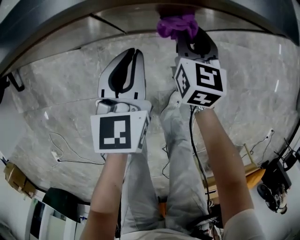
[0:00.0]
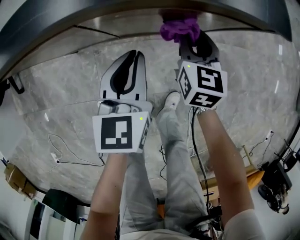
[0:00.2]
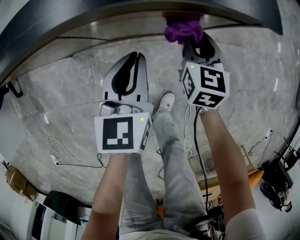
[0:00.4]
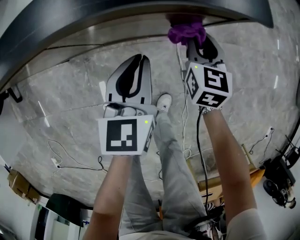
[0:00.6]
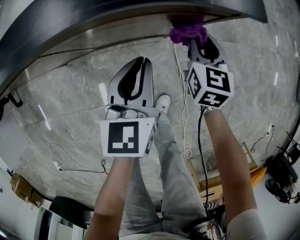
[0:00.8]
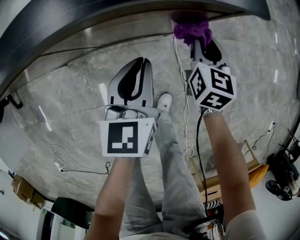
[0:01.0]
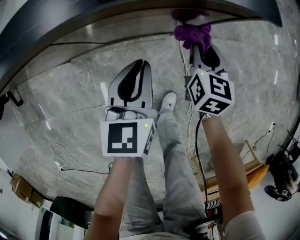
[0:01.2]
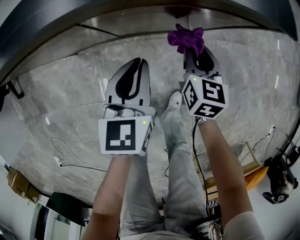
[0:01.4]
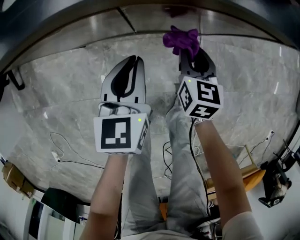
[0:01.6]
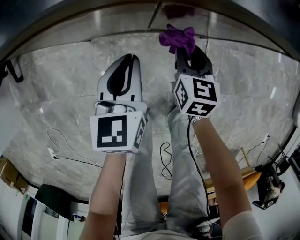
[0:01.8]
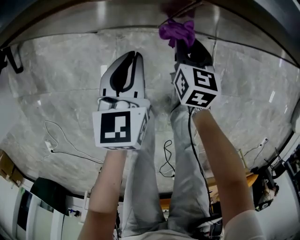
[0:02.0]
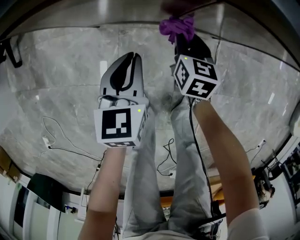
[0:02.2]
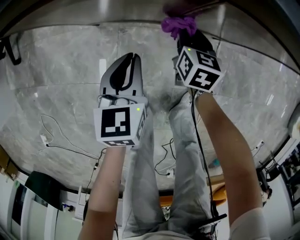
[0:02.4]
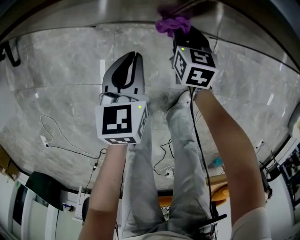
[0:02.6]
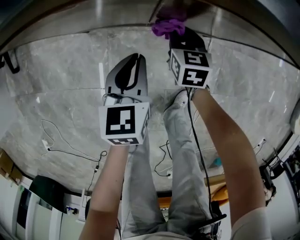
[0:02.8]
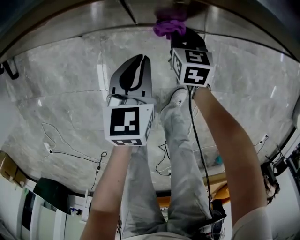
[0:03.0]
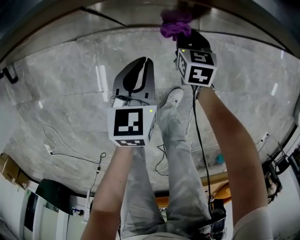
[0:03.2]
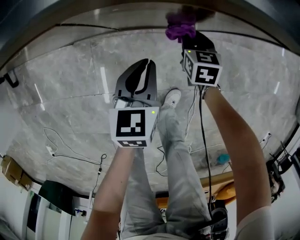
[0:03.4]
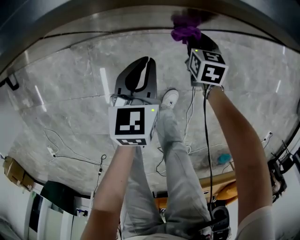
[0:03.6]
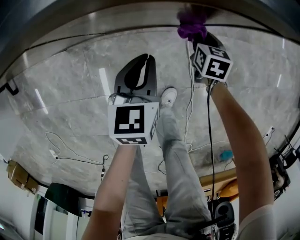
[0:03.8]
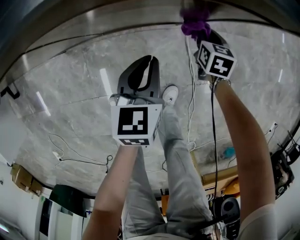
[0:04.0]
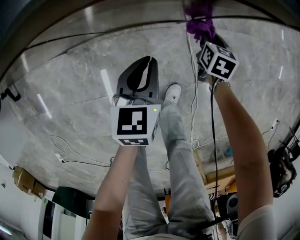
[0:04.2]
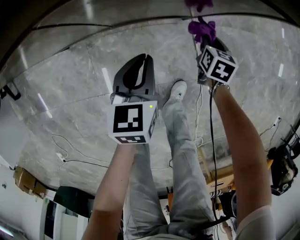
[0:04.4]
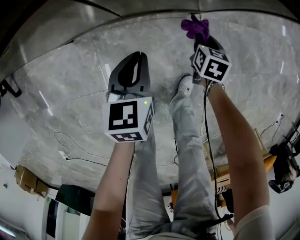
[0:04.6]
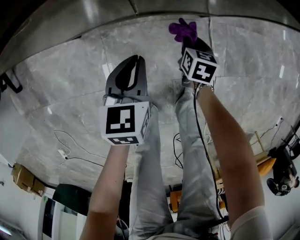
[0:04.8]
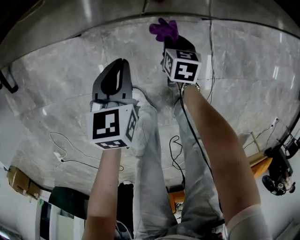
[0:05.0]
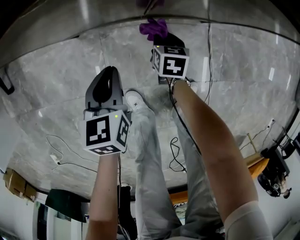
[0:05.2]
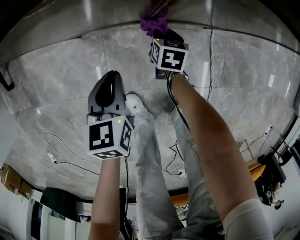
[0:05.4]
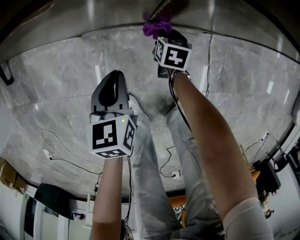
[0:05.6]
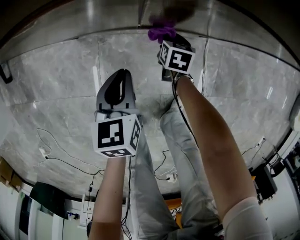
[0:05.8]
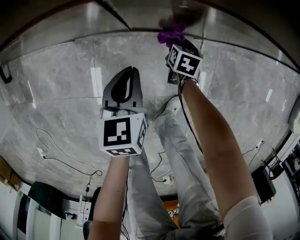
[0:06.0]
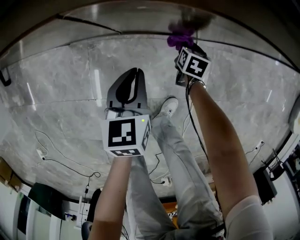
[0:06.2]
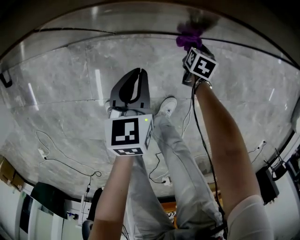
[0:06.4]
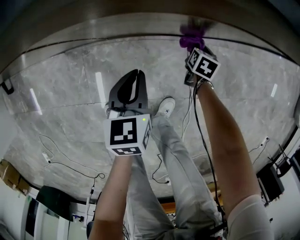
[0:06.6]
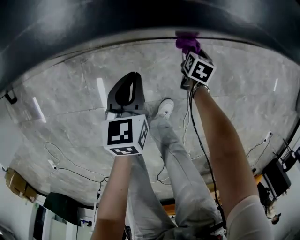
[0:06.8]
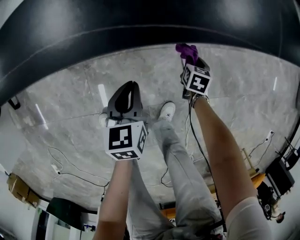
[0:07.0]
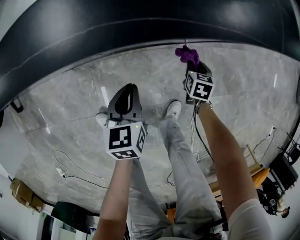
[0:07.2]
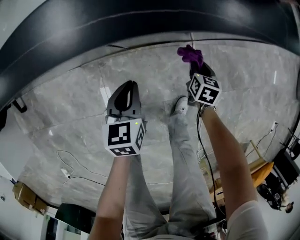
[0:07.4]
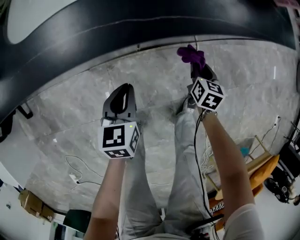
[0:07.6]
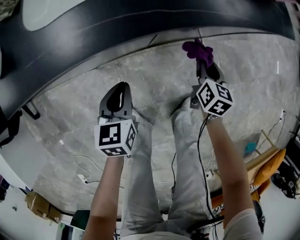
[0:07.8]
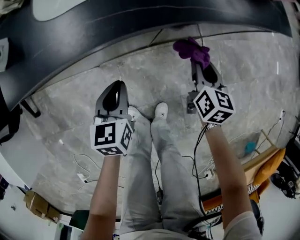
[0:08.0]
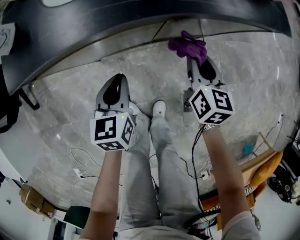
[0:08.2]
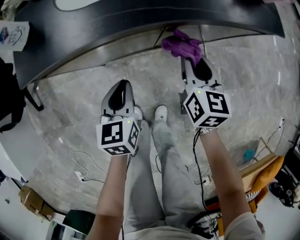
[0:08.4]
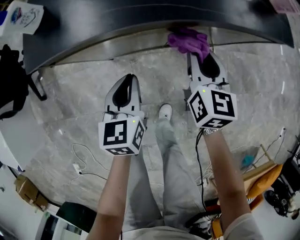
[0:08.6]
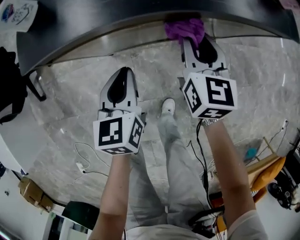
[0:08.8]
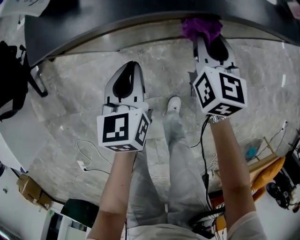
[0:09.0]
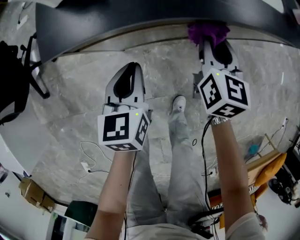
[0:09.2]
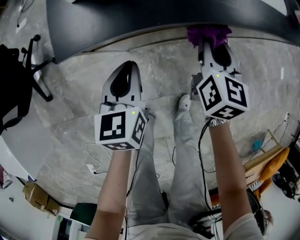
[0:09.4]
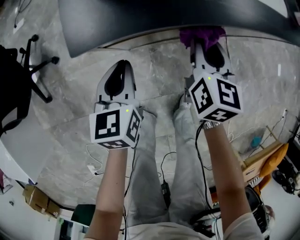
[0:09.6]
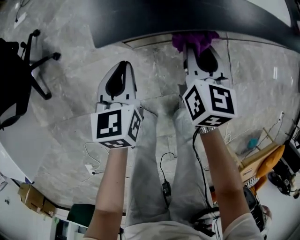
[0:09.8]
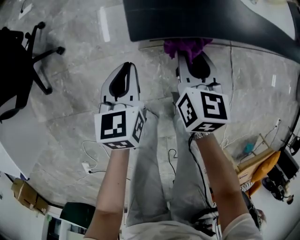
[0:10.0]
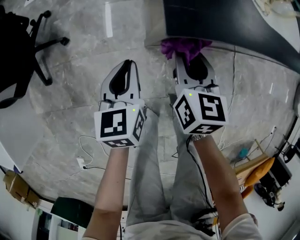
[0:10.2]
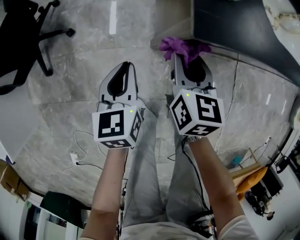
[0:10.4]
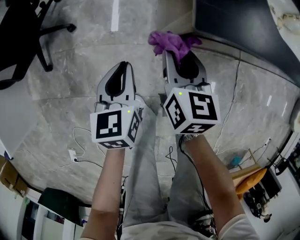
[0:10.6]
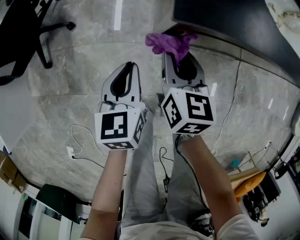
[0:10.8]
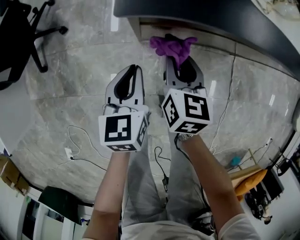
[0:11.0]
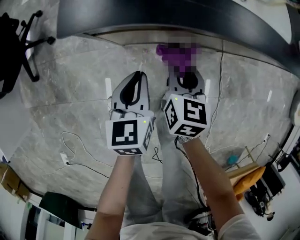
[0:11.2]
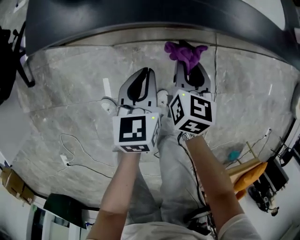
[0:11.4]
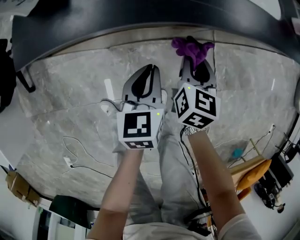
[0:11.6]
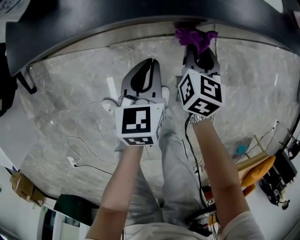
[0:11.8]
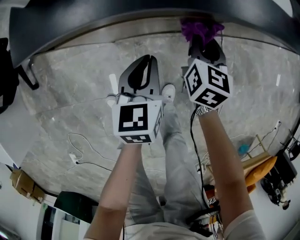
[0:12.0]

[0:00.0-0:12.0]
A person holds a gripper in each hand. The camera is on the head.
0:00.0 to 0:01.6: The right gripper travels backward by approximately 5 cm, and moves some 15 cm to the right and comes back, while the left gripper reaches some 15 cm to the right, then returns.
0:01.6 to 0:03.0: The right gripper travels downward and forward by some 10 cm, and reaches roughly 15 cm to the left, then returns. The left gripper shifts some 5 cm downward, and reaches about 10 cm to the left, then returns.
0:03.0 to 0:04.4: The left gripper travels to the right by about 10 cm. Meanwhile the right gripper heads to the right, covering approximately 20 cm, and swivels some 20 degrees.
0:04.4 to 0:06.0: The left gripper is displaced to the left by roughly 10 cm; the right gripper shifts approximately 20 cm to the left and downward.
0:06.0 to 0:07.6: The left gripper travels to the left and upward by about 10 cm. Meanwhile the right gripper moves upward and backward, approximately 15 cm, and goes to the right and returns, roughly 20 cm each way.
0:07.6 to 0:09.0: The right gripper moves to the left and upward, roughly 35 cm, and rotates some 30 degrees. Meanwhile the left gripper travels to the left and upward by approximately 20 cm.
0:09.0 to 0:10.4: The grippers both shift to the left by roughly 30 cm.
0:10.4 to 0:12.0: The grippers both shift to the right by roughly 35 cm.

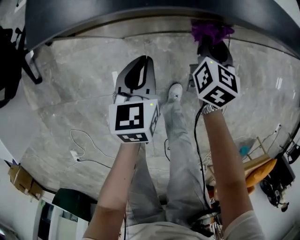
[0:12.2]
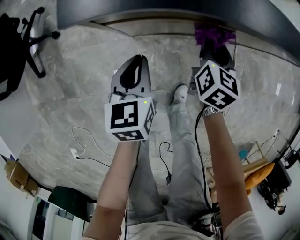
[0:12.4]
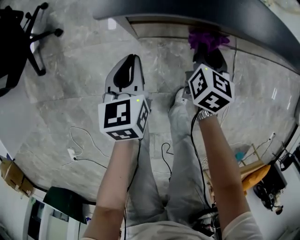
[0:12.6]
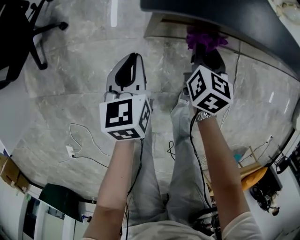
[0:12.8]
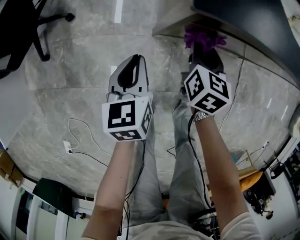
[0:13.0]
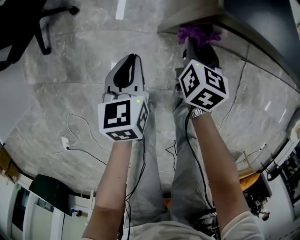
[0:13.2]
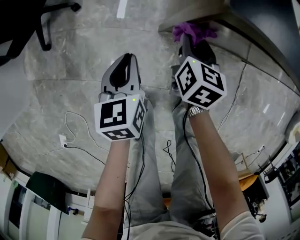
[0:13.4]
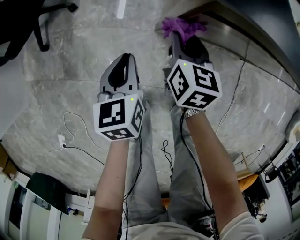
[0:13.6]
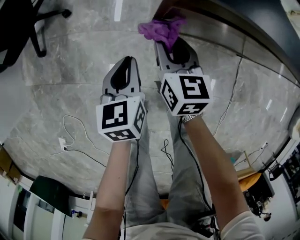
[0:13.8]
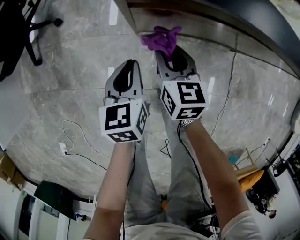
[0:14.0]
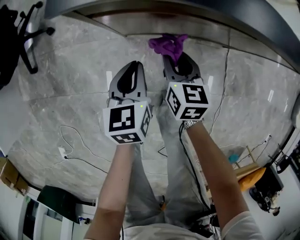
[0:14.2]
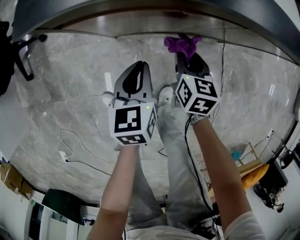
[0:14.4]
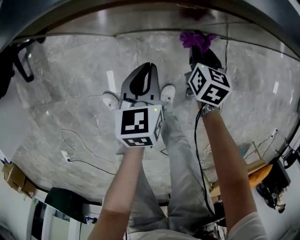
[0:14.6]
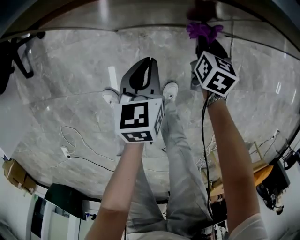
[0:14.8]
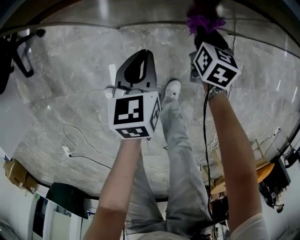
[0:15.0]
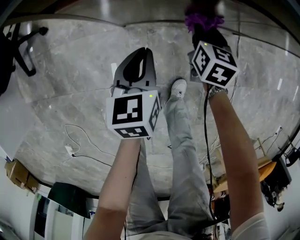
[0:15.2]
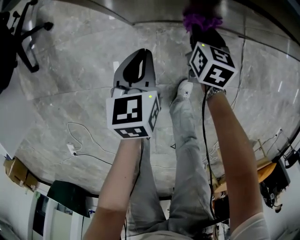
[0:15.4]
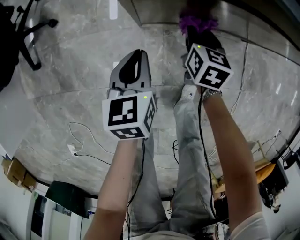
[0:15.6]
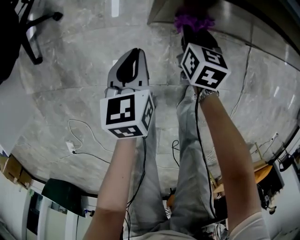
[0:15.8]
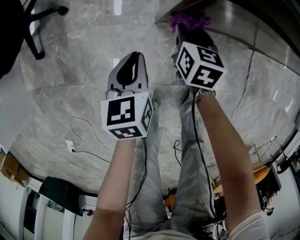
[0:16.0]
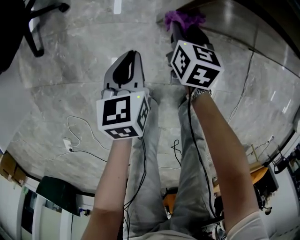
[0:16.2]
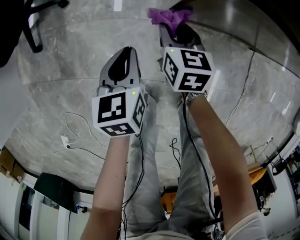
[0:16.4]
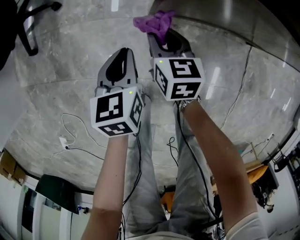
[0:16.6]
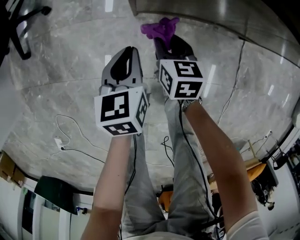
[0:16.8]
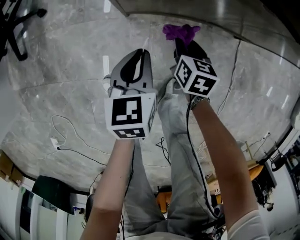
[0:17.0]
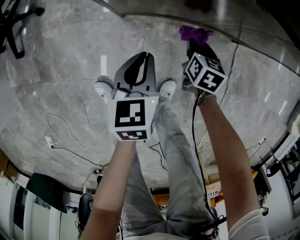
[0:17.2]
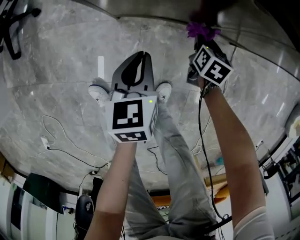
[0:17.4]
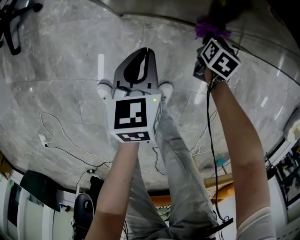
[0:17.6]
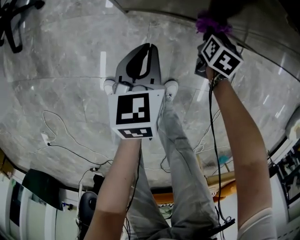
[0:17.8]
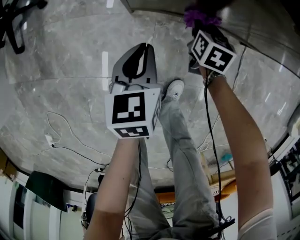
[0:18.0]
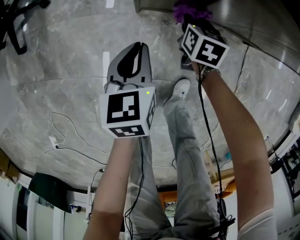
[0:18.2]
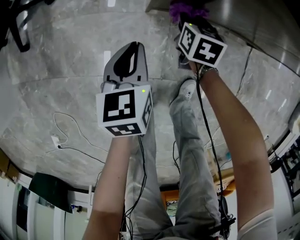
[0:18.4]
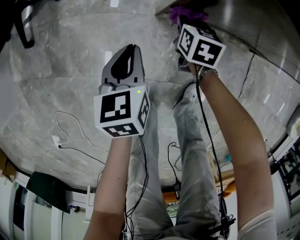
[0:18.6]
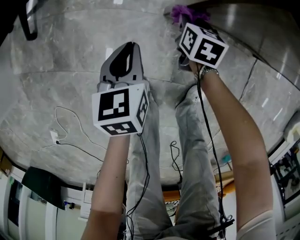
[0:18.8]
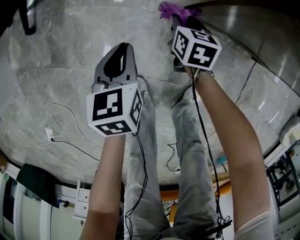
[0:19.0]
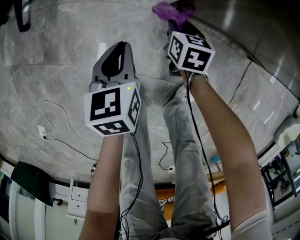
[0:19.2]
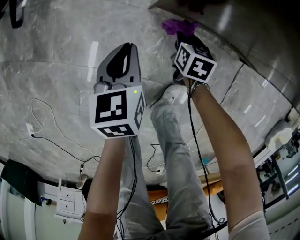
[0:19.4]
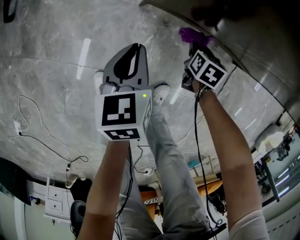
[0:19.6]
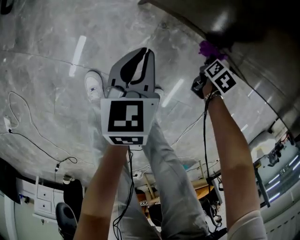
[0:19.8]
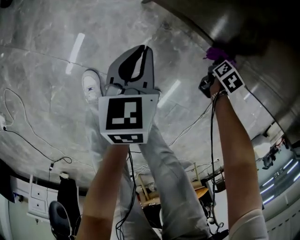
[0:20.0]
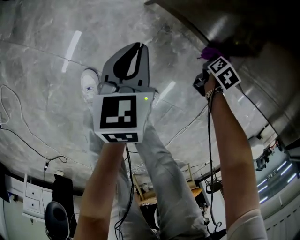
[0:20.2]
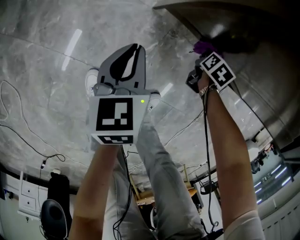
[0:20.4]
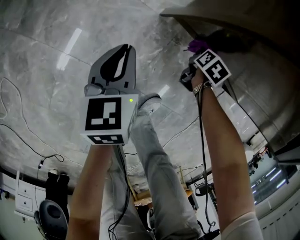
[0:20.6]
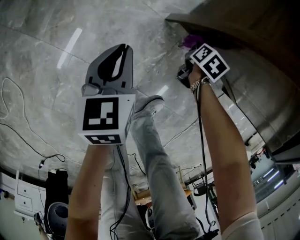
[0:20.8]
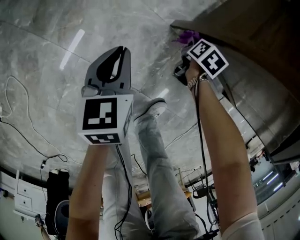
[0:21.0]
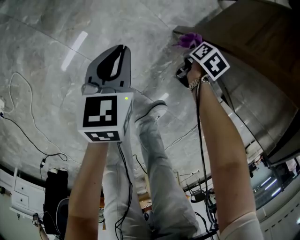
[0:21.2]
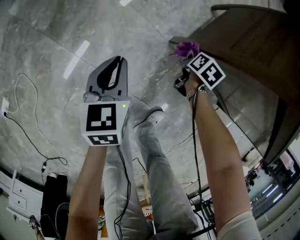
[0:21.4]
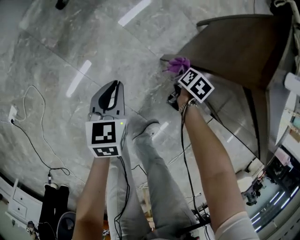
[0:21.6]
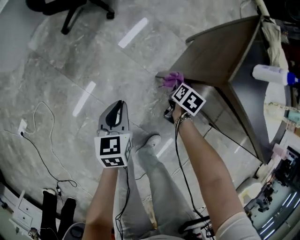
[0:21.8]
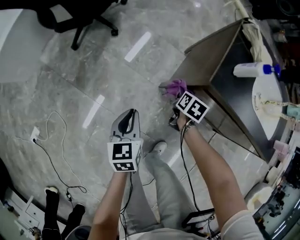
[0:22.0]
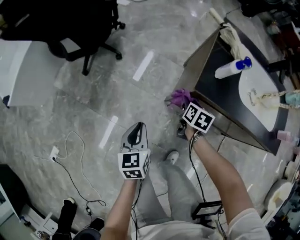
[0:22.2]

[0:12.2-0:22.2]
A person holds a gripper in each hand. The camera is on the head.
0:12.2 to 0:13.6: The grippers both shift to the left by some 30 cm. The right gripper changes its angle by some 20 degrees.
0:13.6 to 0:15.0: Both grippers move to the right, approximately 30 cm.
0:15.0 to 0:16.4: Both grippers travel together to the left, some 30 cm. The right gripper rotates some 20 degrees.
0:16.4 to 0:18.0: The right gripper is displaced to the right and downward by approximately 25 cm. The left gripper travels to the right by some 15 cm.
0:18.0 to 0:19.4: The right gripper is displaced to the left and downward by approximately 15 cm, while the left gripper is displaced to the left by about 10 cm.
0:19.4 to 0:20.8: The left gripper shifts approximately 10 cm to the left and downward. The right gripper travels downward and forward by about 10 cm, and moves roughly 25 cm to the right and comes back.
0:20.8 to 0:22.2: The grippers both shift upward by roughly 40 cm. The right gripper rotates approximately 20 degrees.

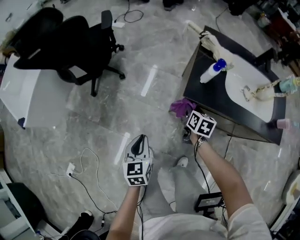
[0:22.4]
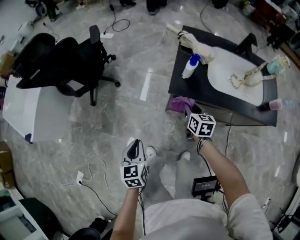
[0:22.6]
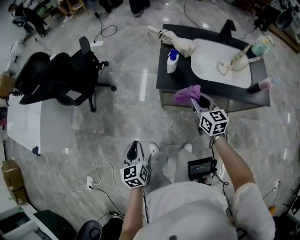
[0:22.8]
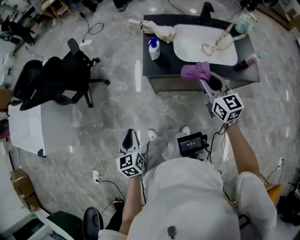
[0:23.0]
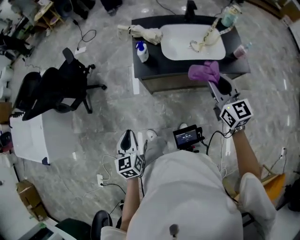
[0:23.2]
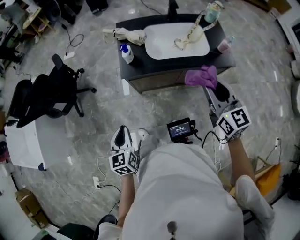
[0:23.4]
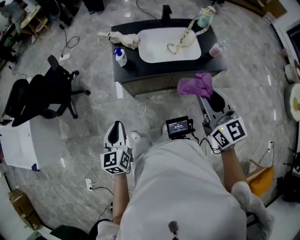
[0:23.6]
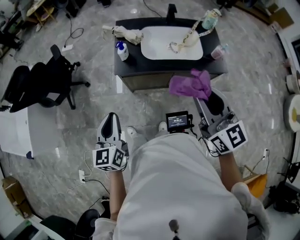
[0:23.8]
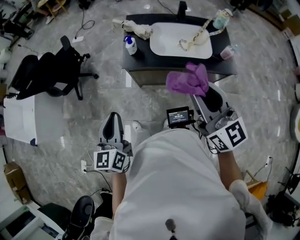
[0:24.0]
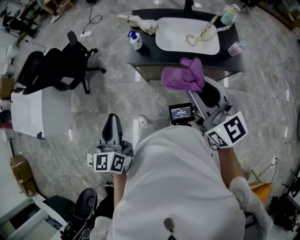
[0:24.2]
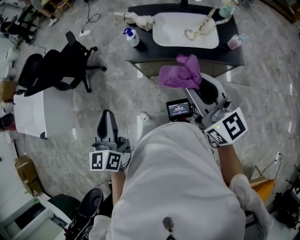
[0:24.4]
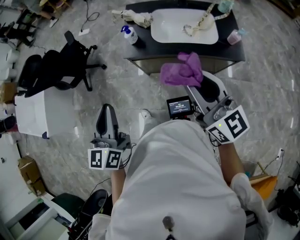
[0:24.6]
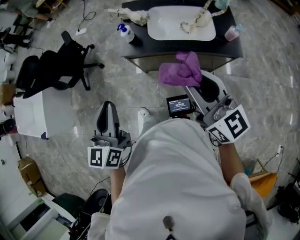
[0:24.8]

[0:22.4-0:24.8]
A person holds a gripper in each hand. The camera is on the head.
0:22.4 to 0:23.6: The right gripper travels upward, backward and to the right by approximately 60 cm, and tips its fingers upward by roughly 40 degrees. Meanwhile the left gripper shifts about 30 cm upward and to the right, and changes its angle by roughly 20 degrees.
0:23.6 to 0:24.8: The right gripper rotates roughly 20 degrees, while the left gripper heads upward, covering approximately 15 cm.
